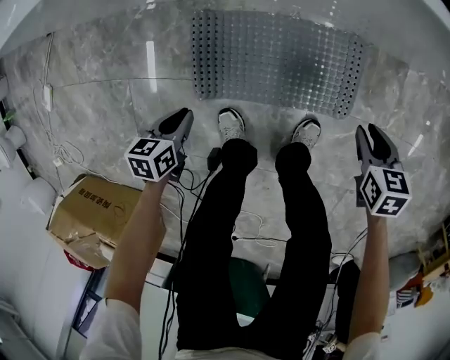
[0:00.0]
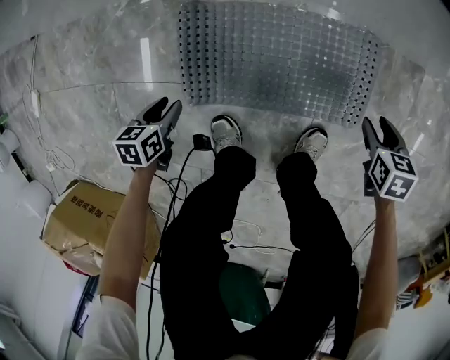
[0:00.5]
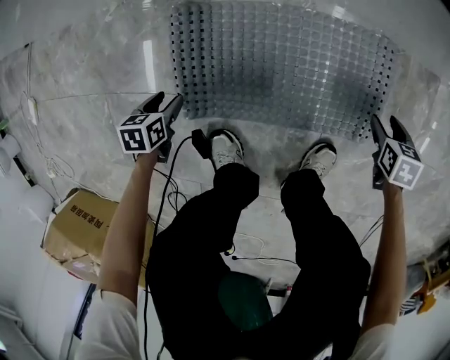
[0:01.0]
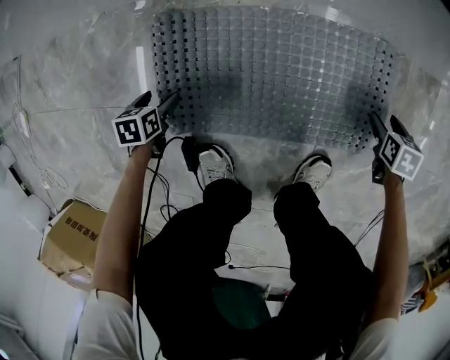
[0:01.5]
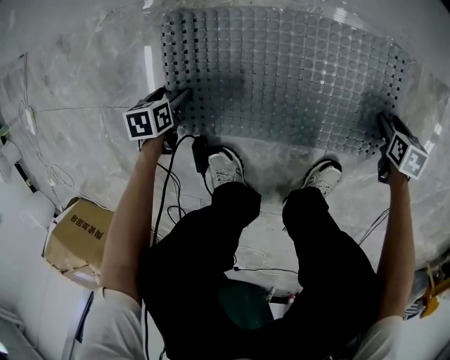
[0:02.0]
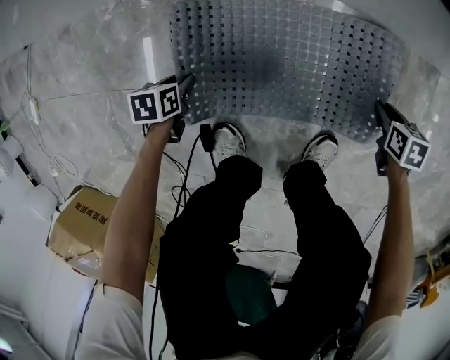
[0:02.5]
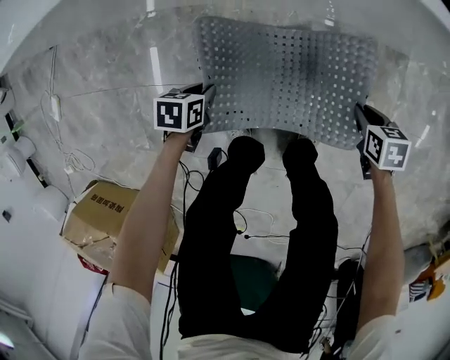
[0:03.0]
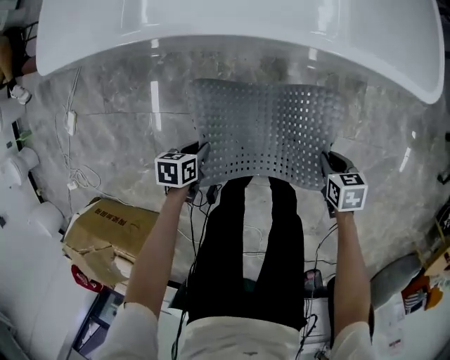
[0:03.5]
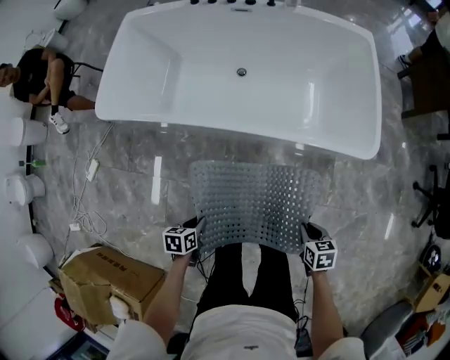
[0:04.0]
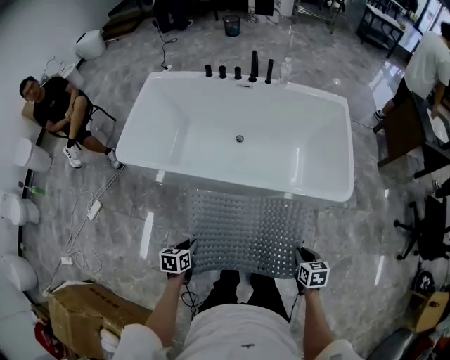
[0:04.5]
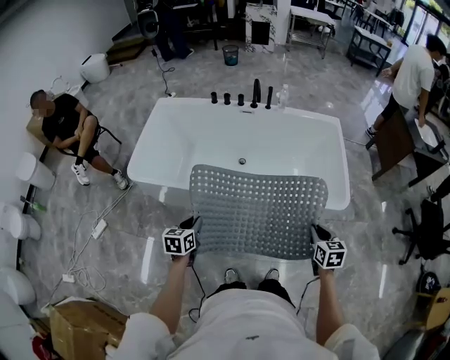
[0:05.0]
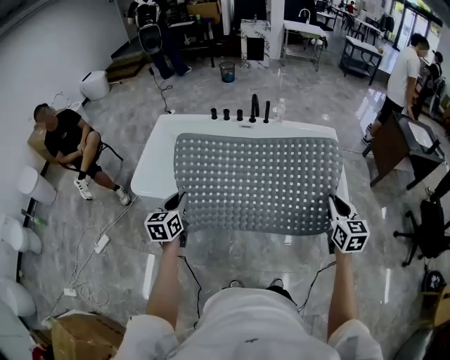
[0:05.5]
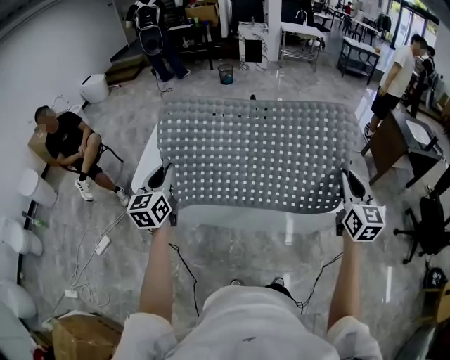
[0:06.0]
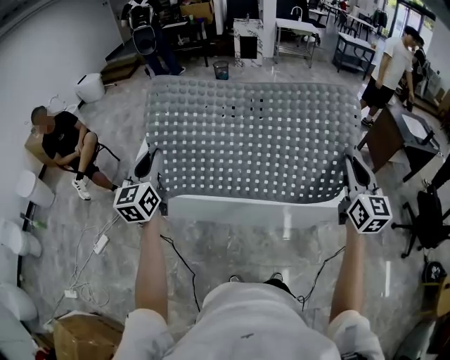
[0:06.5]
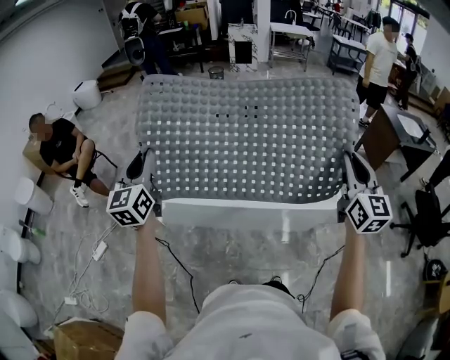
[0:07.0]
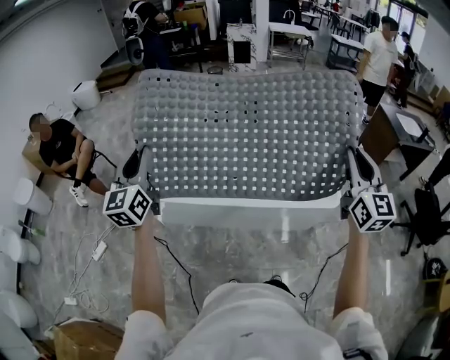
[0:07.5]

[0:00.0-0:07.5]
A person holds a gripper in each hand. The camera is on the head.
0:00.0 to 0:02.0: Both grippers move downward, roughly 30 cm. The right gripper opens; the left gripper opens its fingers.
0:02.0 to 0:04.0: Both grippers move upward, about 70 cm. The right gripper closes, while the left gripper closes its fingers.
0:04.0 to 0:05.5: The right gripper goes about 40 cm upward, and tips its fingers upward by approximately 40 degrees; the left gripper heads upward, forward and to the left, covering about 40 cm, and angles its fingers upward, by about 40 degrees.
0:05.5 to 0:07.5: The grippers both shift upward by some 25 cm. The left gripper changes its angle by some 30 degrees; the right gripper changes its angle by about 30 degrees.

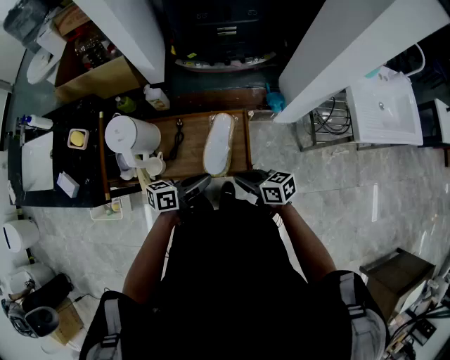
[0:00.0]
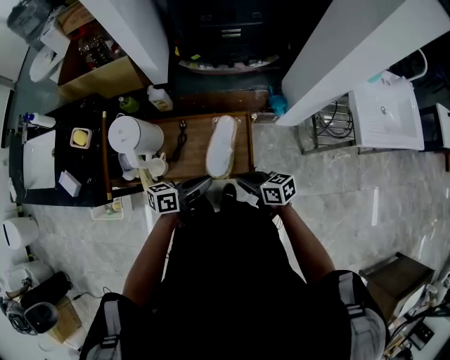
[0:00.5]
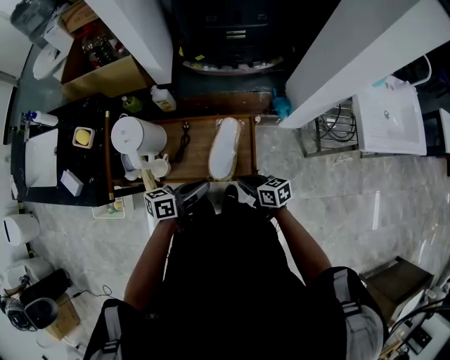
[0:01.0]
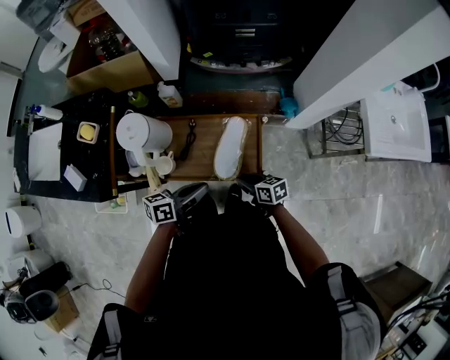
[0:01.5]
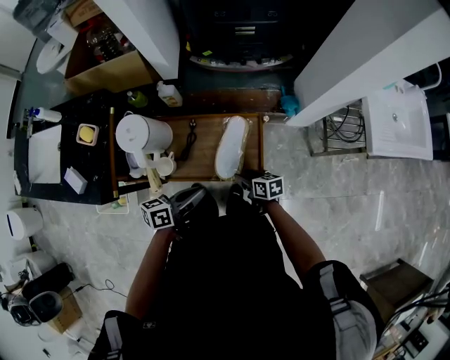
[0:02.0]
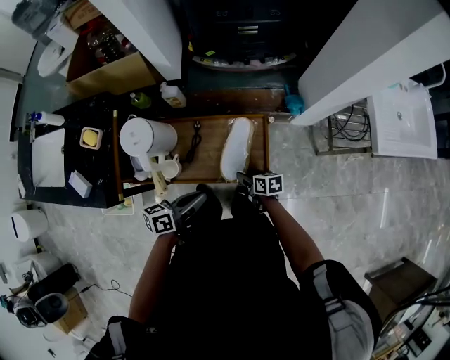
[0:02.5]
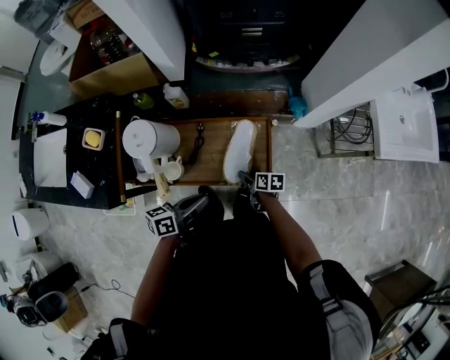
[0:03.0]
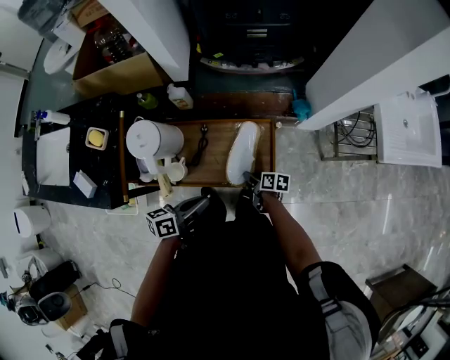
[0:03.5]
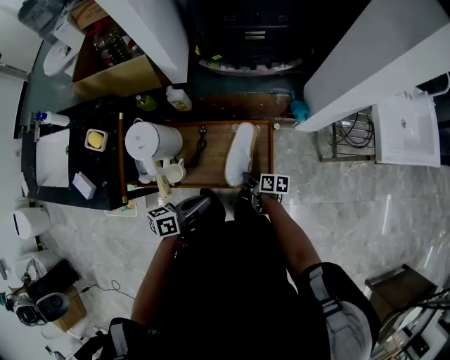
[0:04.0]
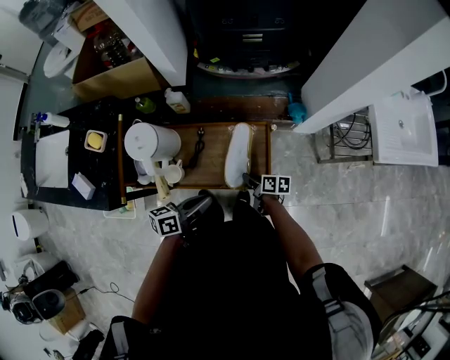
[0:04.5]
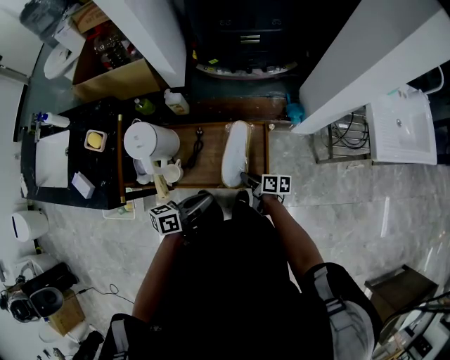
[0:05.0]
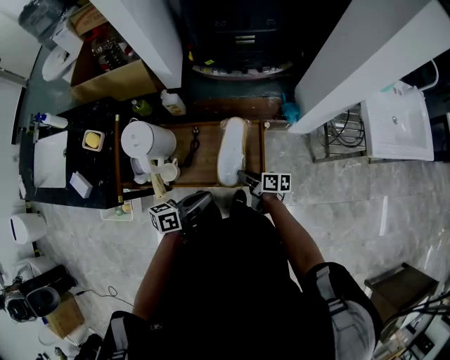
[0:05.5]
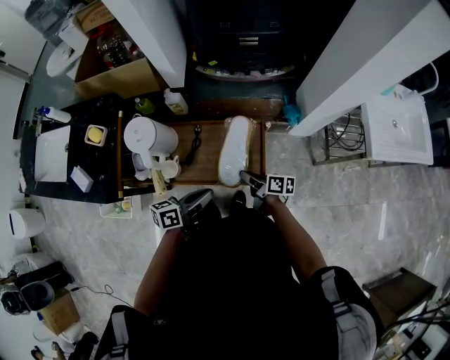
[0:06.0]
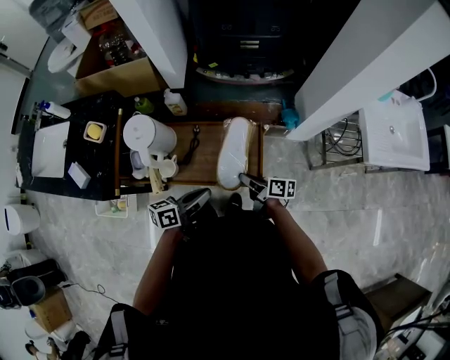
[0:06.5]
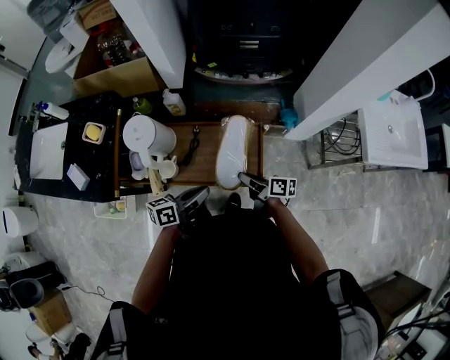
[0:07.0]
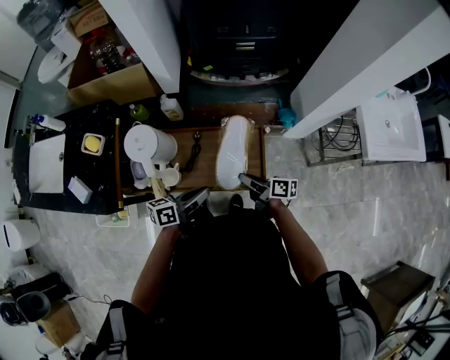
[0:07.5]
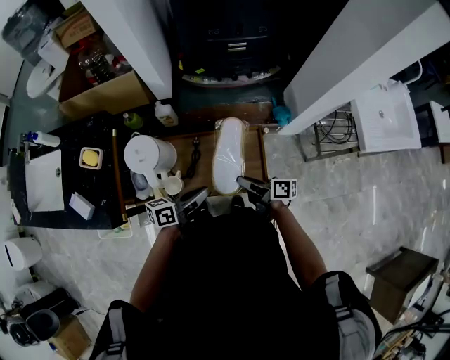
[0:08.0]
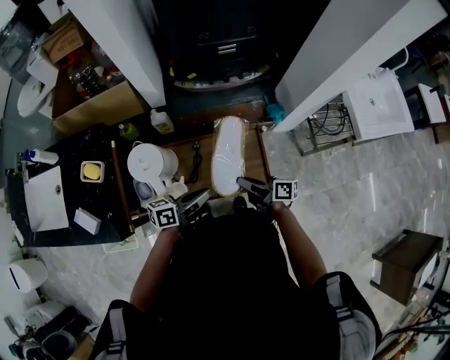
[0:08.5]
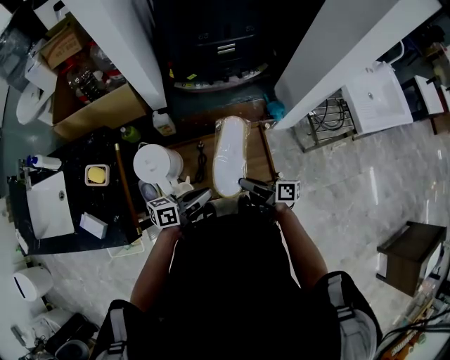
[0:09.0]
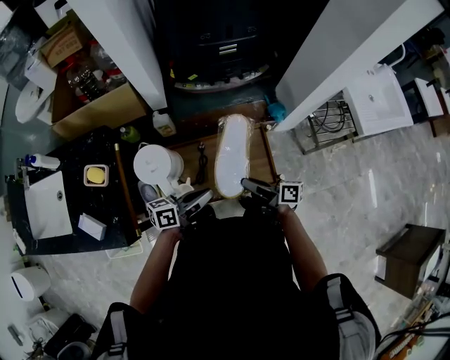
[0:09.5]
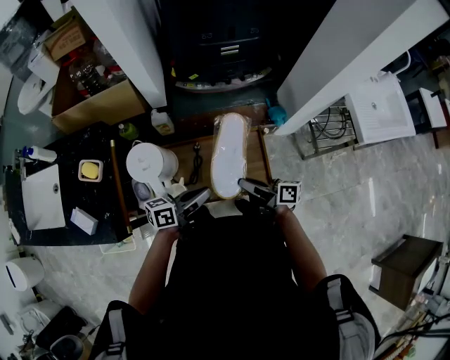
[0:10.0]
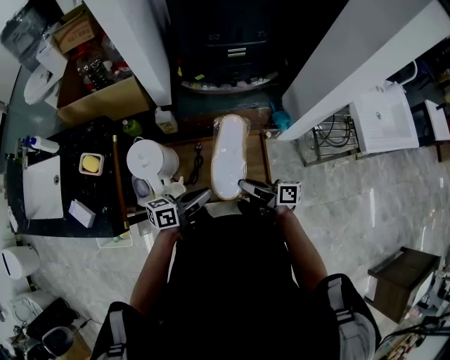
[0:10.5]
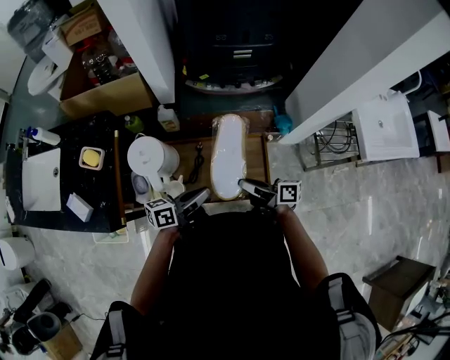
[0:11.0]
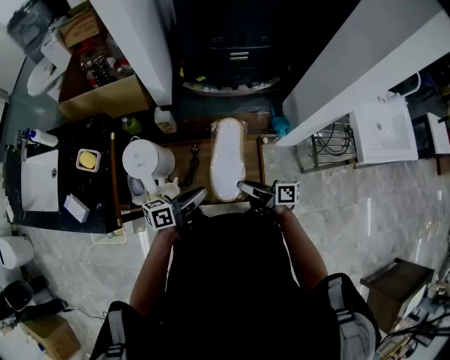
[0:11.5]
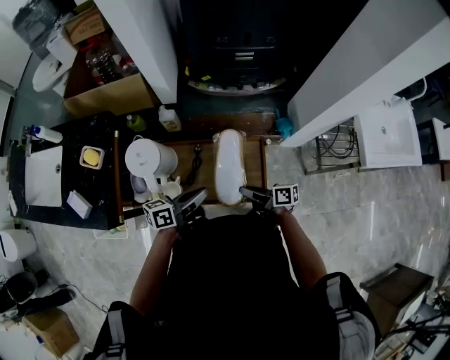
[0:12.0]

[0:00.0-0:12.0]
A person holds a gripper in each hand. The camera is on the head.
0:00.0 to 0:02.0: The right gripper heads downward, covering some 15 cm, and opens its fingers. The left gripper changes place by about 5 cm.
0:02.0 to 0:04.0: The right gripper changes place by roughly 5 cm, rotates some 20 degrees, and closes up.
0:04.0 to 0:06.0: The right gripper travels upward by roughly 10 cm.
0:06.0 to 0:08.0: The right gripper heads upward, covering about 5 cm. Meanwhile the left gripper travels forward by roughly 5 cm.
0:08.0 to 0:10.0: The right gripper shifts by roughly 5 cm.
0:10.0 to 0:12.0: The right gripper goes roughly 5 cm downward.

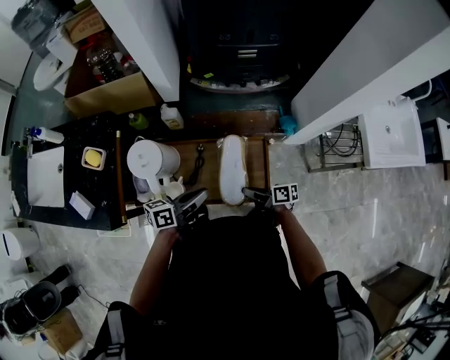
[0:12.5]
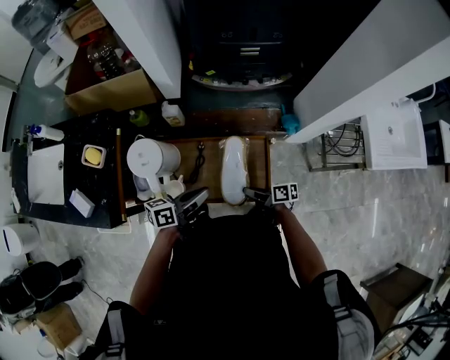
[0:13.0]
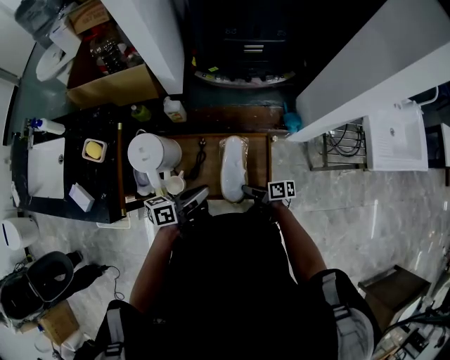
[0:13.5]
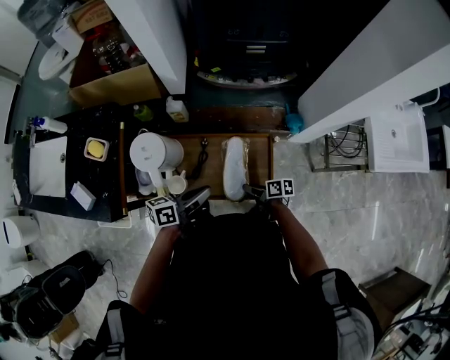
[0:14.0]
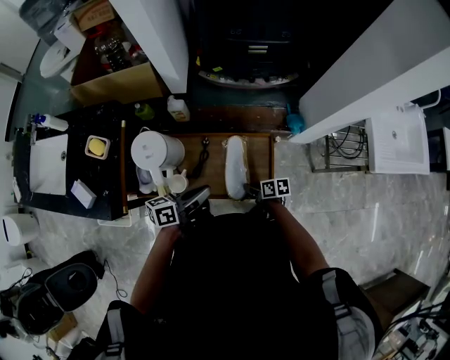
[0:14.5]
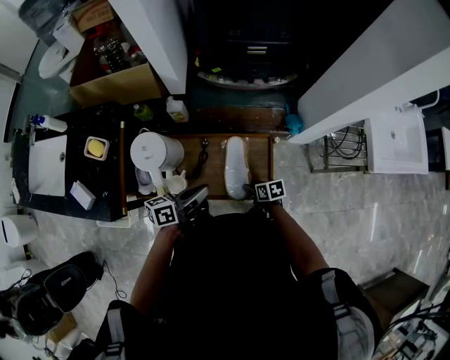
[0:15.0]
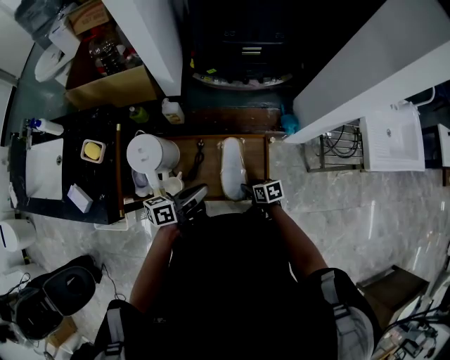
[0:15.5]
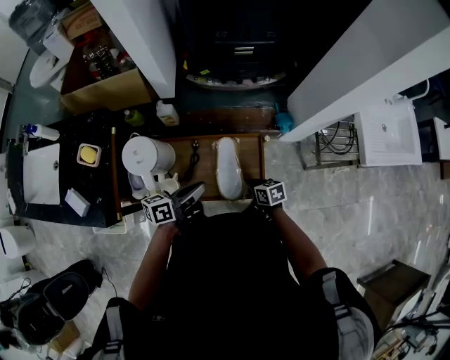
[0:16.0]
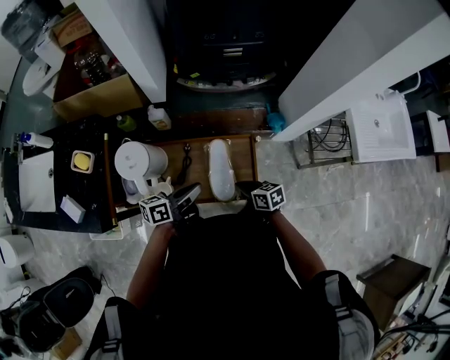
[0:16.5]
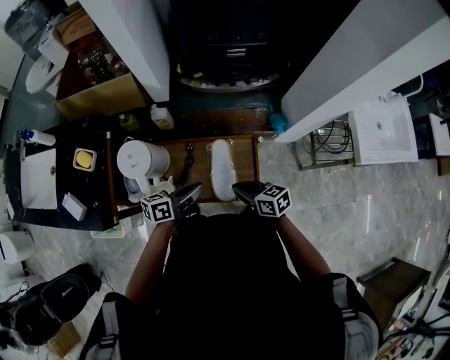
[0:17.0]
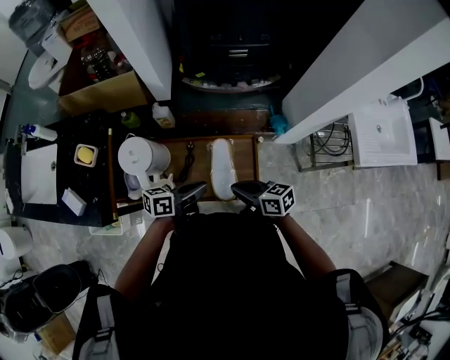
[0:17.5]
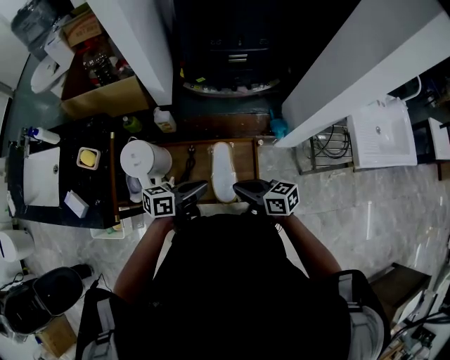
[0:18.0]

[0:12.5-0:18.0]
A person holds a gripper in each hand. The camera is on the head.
0:12.5 to 0:14.5: The right gripper goes roughly 5 cm downward, and turns by some 20 degrees.
0:14.5 to 0:16.0: The right gripper swivels roughly 20 degrees, and opens, then closes again.
0:16.0 to 0:18.0: The right gripper goes about 20 cm upward, and turns by roughly 30 degrees.

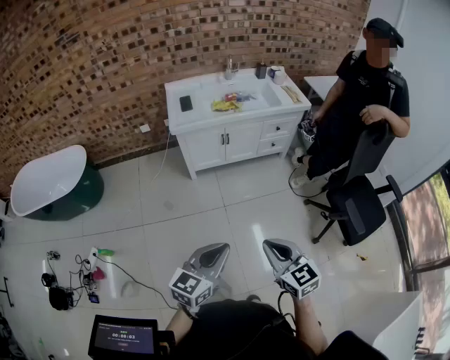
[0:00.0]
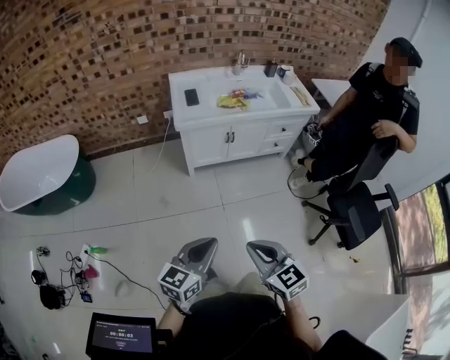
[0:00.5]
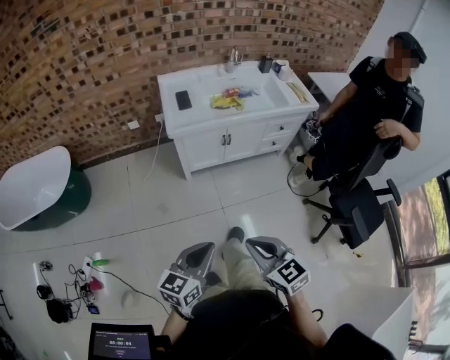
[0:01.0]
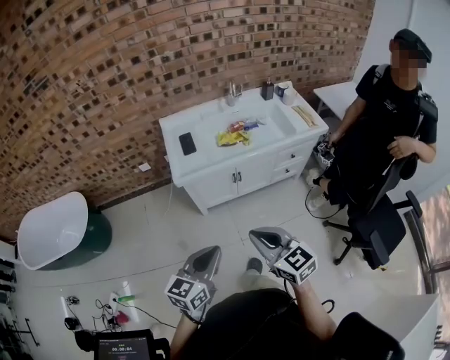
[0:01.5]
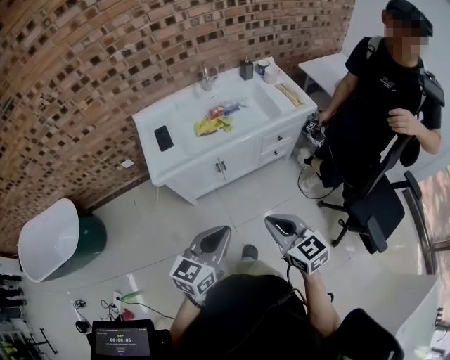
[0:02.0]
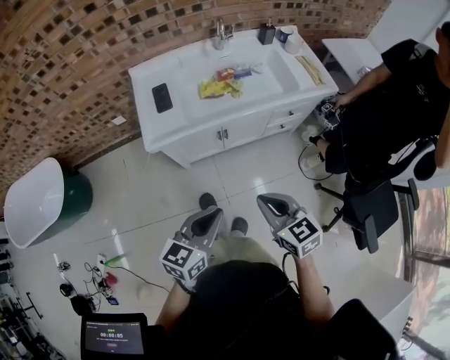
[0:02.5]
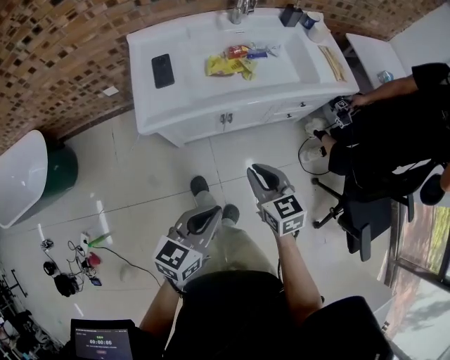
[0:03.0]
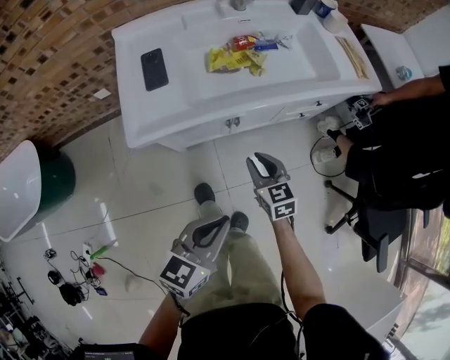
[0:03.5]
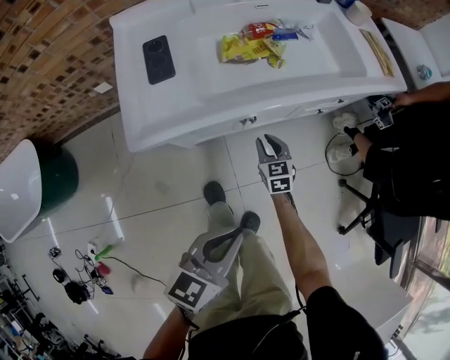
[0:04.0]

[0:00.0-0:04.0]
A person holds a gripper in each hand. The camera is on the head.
0:00.0 to 0:02.0: Both grippers travel together forward, roughly 40 cm.
0:02.0 to 0:04.0: The left gripper goes roughly 25 cm downward and forward; the right gripper travels downward and forward by some 60 cm, and turns by approximately 20 degrees.
